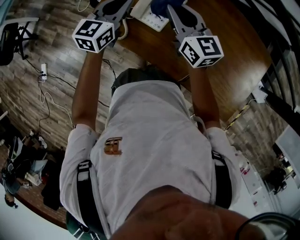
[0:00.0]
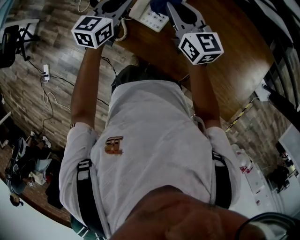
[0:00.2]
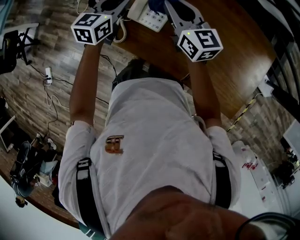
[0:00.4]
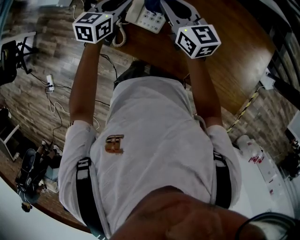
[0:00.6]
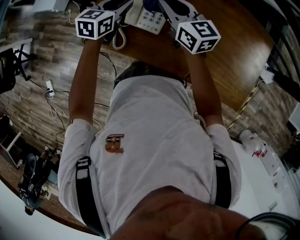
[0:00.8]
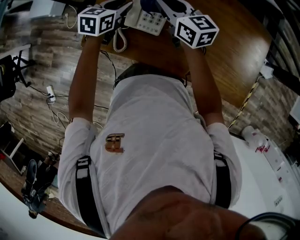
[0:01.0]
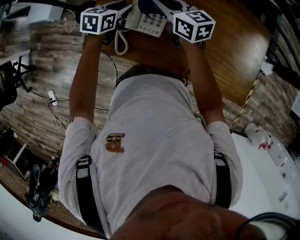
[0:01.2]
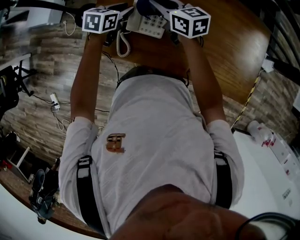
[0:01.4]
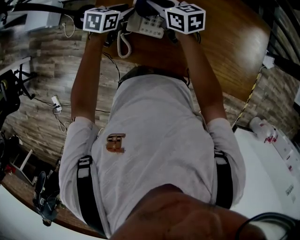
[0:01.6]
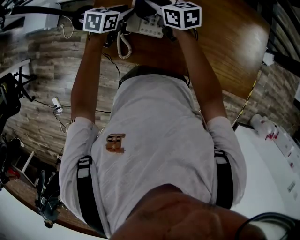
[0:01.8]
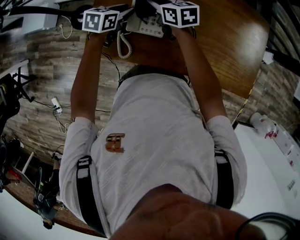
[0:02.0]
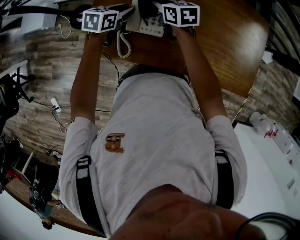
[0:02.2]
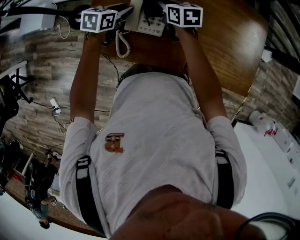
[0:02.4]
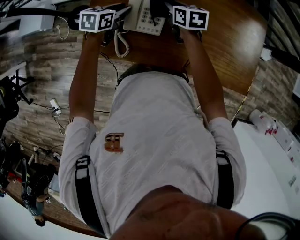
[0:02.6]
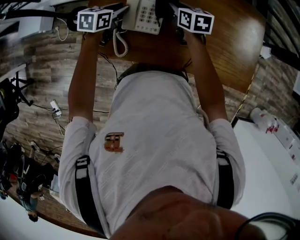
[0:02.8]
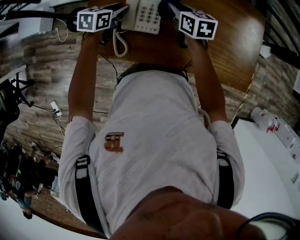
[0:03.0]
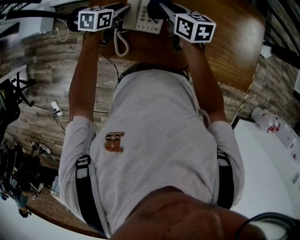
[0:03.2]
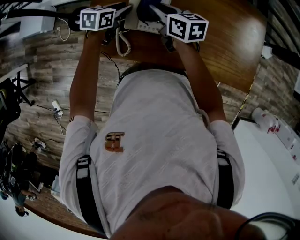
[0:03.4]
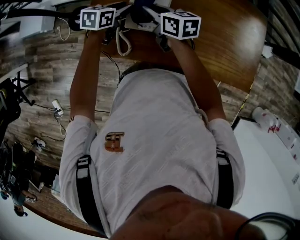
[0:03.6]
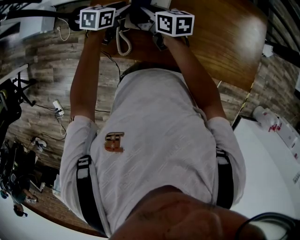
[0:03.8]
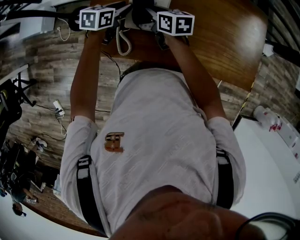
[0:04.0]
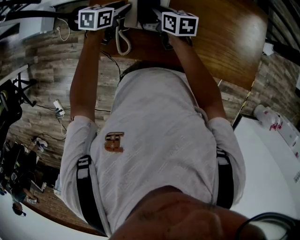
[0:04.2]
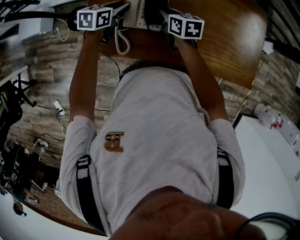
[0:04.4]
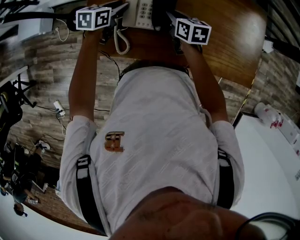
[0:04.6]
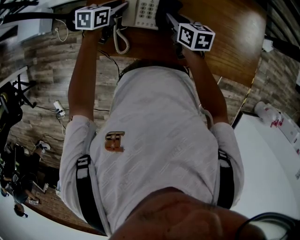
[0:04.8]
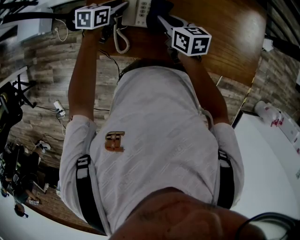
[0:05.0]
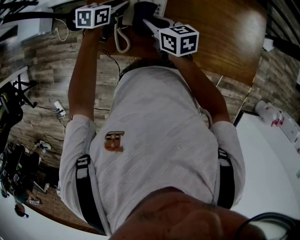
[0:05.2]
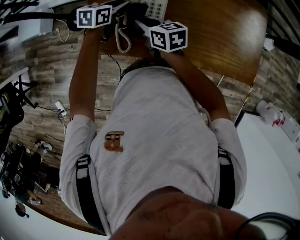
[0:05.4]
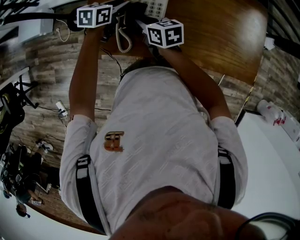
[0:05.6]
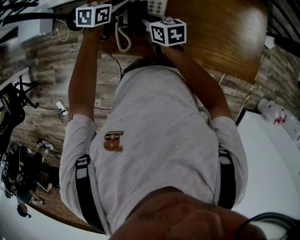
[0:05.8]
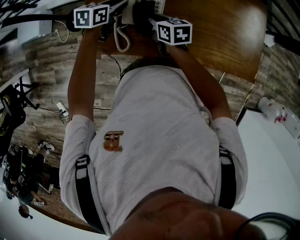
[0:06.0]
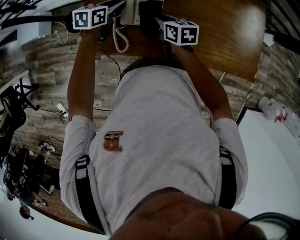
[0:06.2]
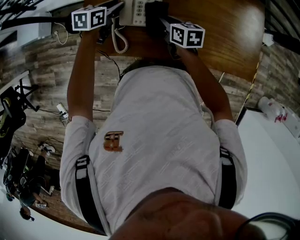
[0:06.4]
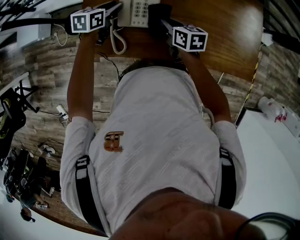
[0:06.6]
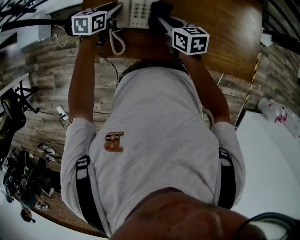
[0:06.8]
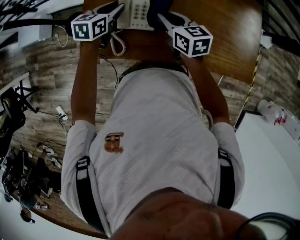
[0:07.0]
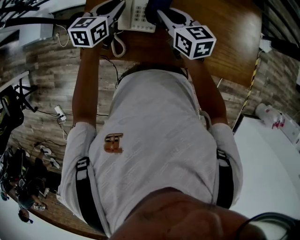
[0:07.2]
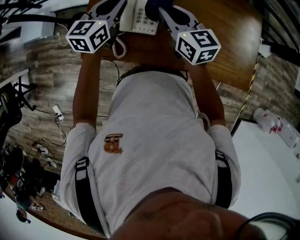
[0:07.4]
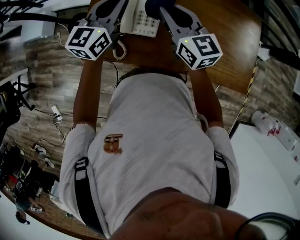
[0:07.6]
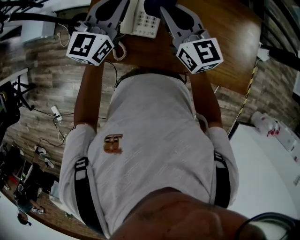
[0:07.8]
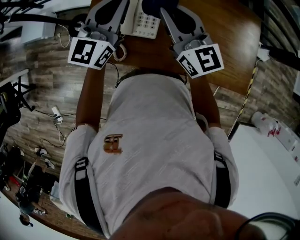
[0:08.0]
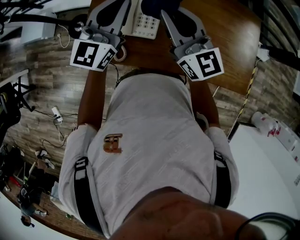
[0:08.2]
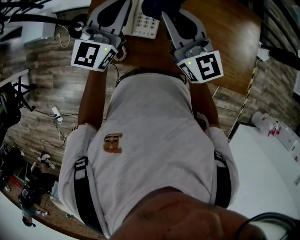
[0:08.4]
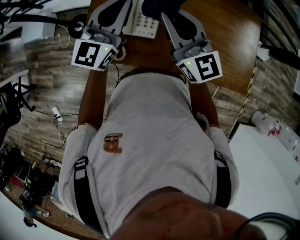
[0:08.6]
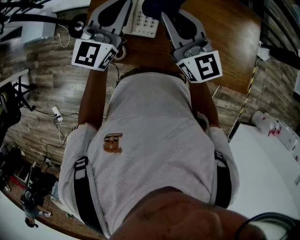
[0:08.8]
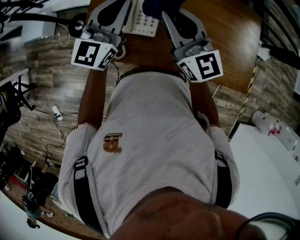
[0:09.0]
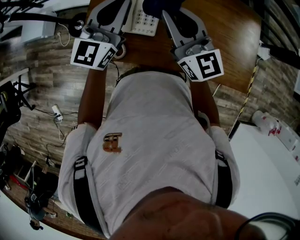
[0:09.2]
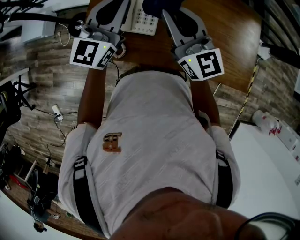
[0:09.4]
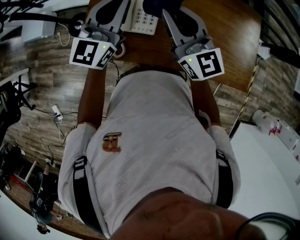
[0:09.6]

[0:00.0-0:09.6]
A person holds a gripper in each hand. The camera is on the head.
0:00.0 to 0:01.6: The left gripper shifts roughly 15 cm downward and forward, turns by approximately 40 degrees, and opens its fingers; the right gripper travels forward, downward and to the left by roughly 15 cm, and swivels about 20 degrees.
0:01.6 to 0:03.2: The right gripper heads to the right, covering some 5 cm.
0:03.2 to 0:04.8: The right gripper is displaced downward by approximately 5 cm.
0:04.8 to 0:06.4: The right gripper moves about 15 cm to the left and comes back.
0:06.4 to 0:08.0: Both grippers move upward, some 25 cm. The right gripper tips its fingers upward by about 40 degrees. The left gripper tilts its fingers about 40 degrees upward, and closes.
0:08.0 to 0:09.6: There are only small adjustments of the grippers.

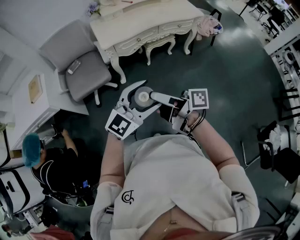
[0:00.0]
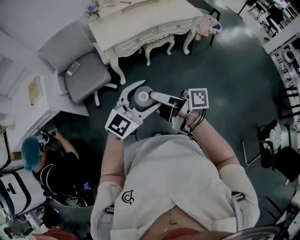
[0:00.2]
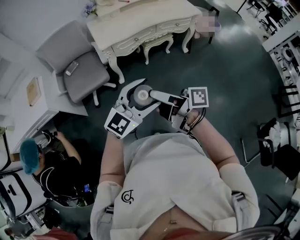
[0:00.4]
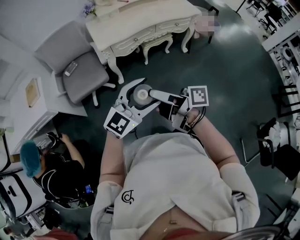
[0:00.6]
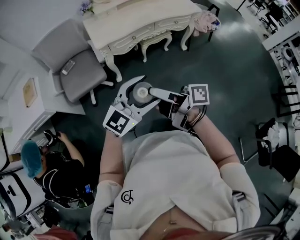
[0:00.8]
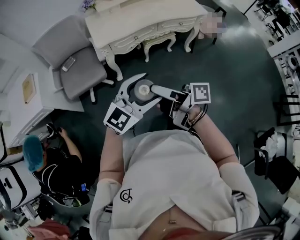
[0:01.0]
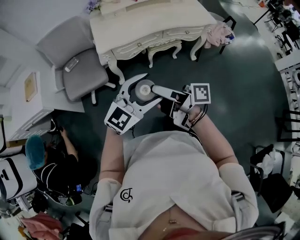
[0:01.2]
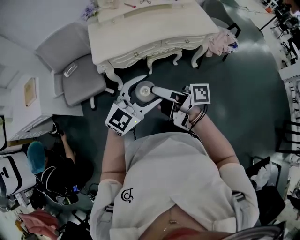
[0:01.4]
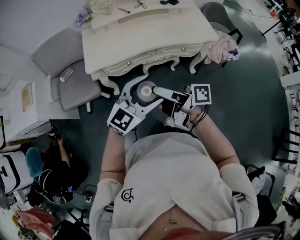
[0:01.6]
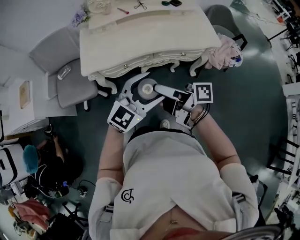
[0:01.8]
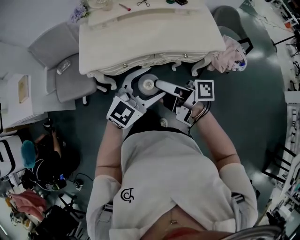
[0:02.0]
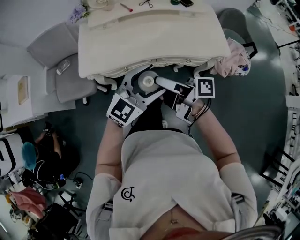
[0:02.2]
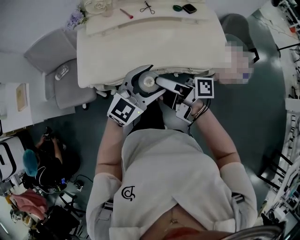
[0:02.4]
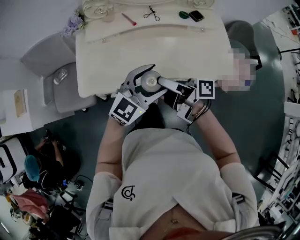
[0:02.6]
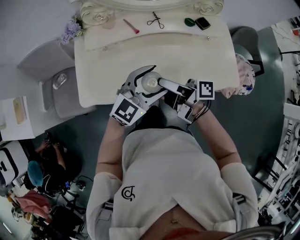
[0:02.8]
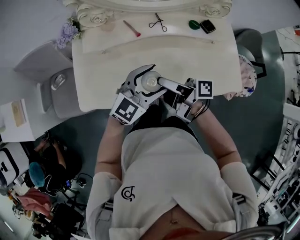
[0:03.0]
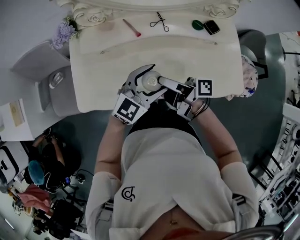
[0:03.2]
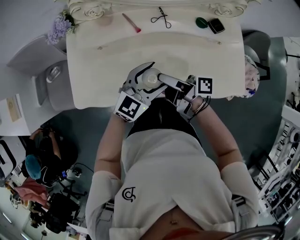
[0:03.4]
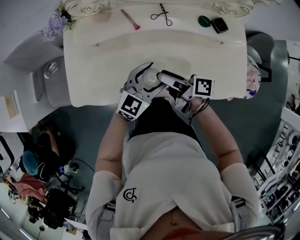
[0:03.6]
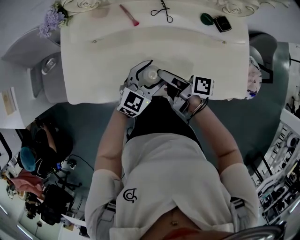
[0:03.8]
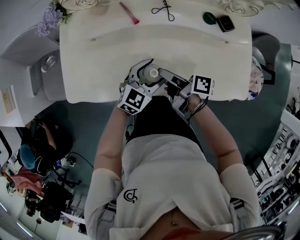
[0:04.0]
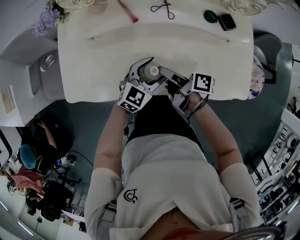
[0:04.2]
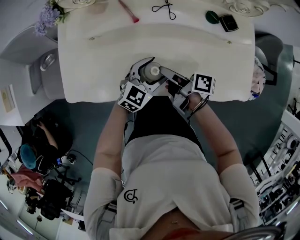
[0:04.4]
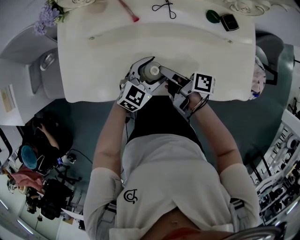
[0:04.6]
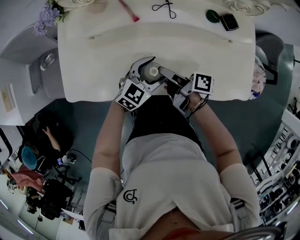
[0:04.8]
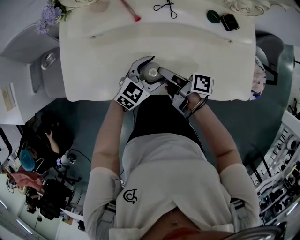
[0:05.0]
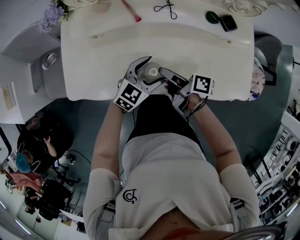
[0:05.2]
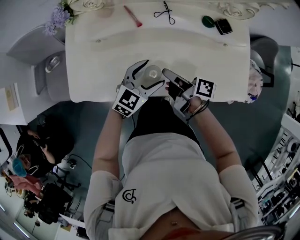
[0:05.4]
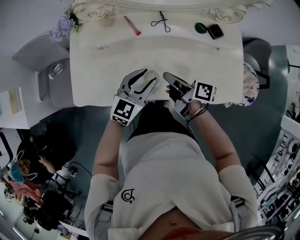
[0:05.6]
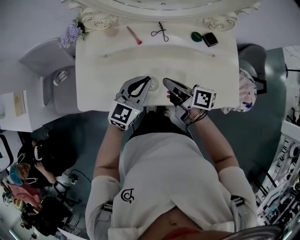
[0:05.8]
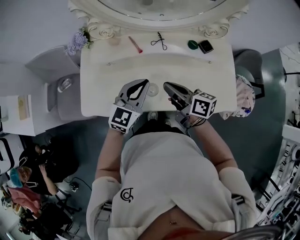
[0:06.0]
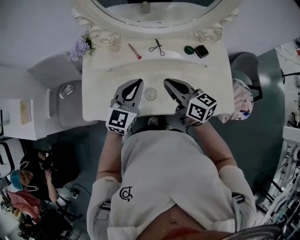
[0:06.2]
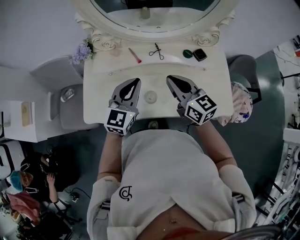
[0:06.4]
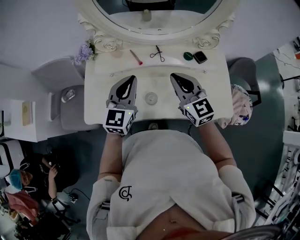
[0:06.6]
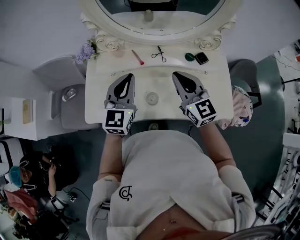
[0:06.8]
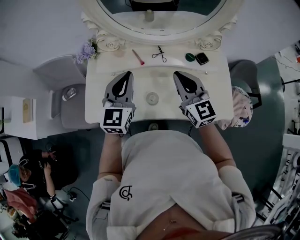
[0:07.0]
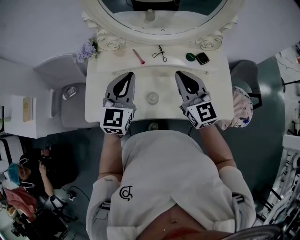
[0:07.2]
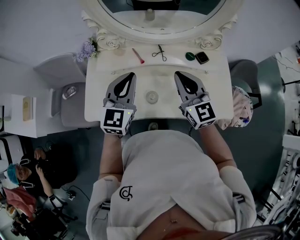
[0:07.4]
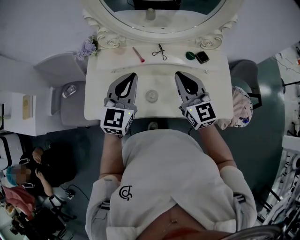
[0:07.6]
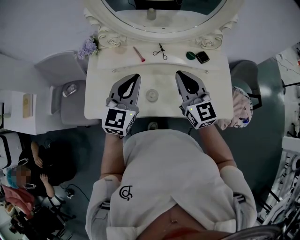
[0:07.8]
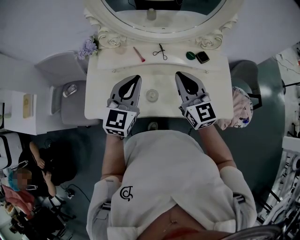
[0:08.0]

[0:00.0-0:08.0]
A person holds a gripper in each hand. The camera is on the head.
0:00.0 to 0:01.6: Both grippers move forward and to the right, some 35 cm.
0:01.6 to 0:03.2: Both grippers are carried forward, about 40 cm.
0:03.2 to 0:04.8: Both grippers travel together downward, approximately 15 cm. The right gripper rotates about 20 degrees.
0:04.8 to 0:06.4: Both grippers travel together upward, approximately 25 cm. The right gripper rolls counterclockwise, seen from behind, by roughly 70 degrees, and closes up. Meanwhile the left gripper changes its angle by some 30 degrees, and closes its fingers.
0:06.4 to 0:08.0: The right gripper turns by approximately 20 degrees.

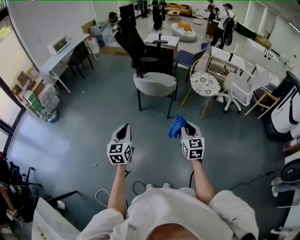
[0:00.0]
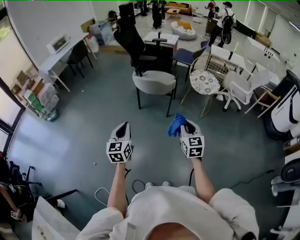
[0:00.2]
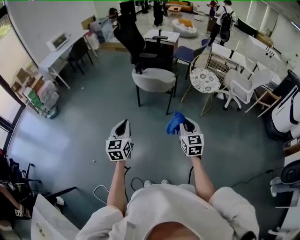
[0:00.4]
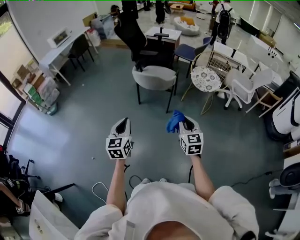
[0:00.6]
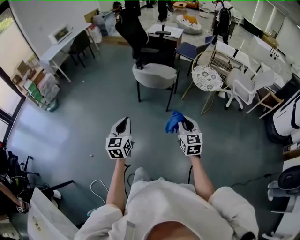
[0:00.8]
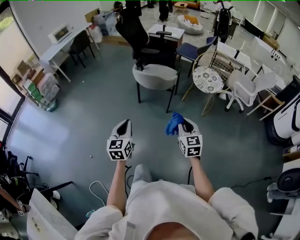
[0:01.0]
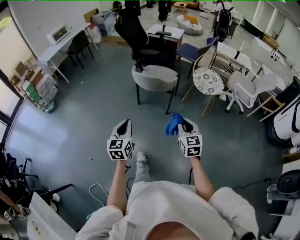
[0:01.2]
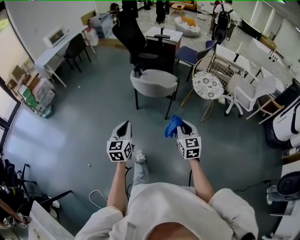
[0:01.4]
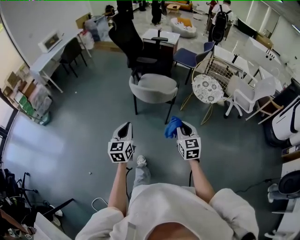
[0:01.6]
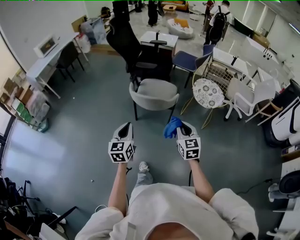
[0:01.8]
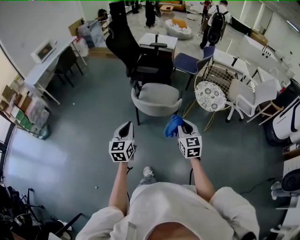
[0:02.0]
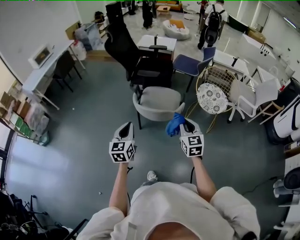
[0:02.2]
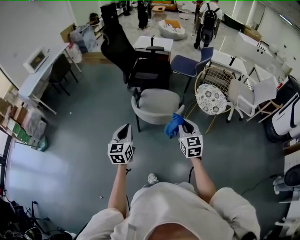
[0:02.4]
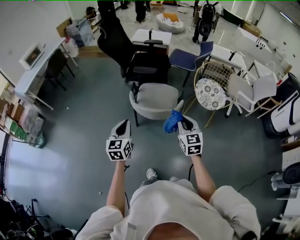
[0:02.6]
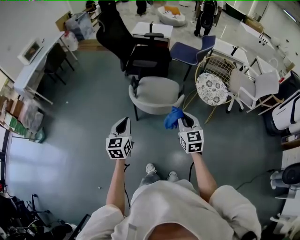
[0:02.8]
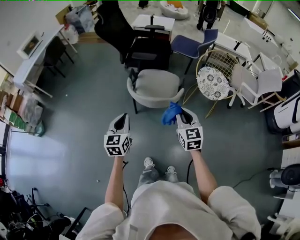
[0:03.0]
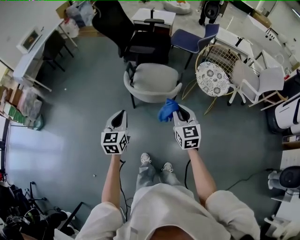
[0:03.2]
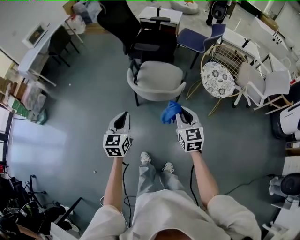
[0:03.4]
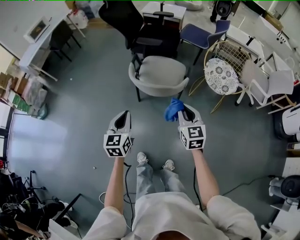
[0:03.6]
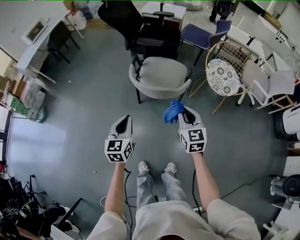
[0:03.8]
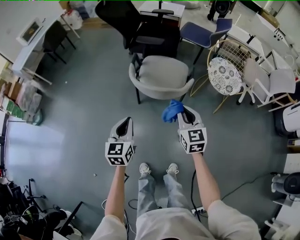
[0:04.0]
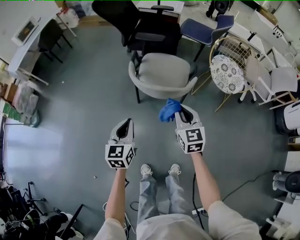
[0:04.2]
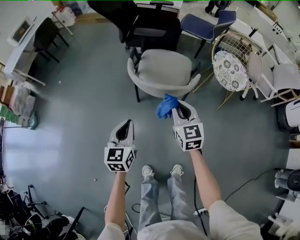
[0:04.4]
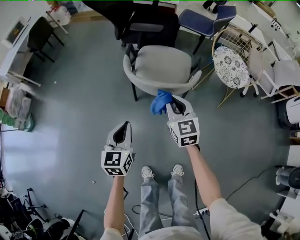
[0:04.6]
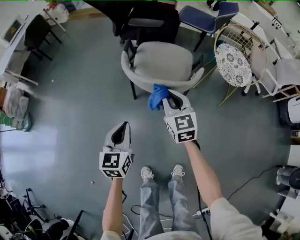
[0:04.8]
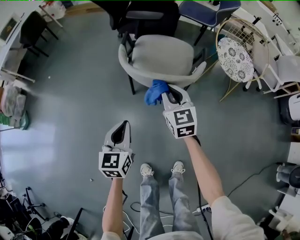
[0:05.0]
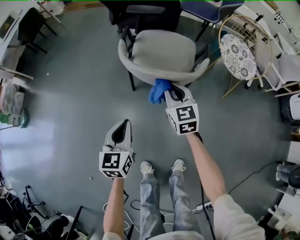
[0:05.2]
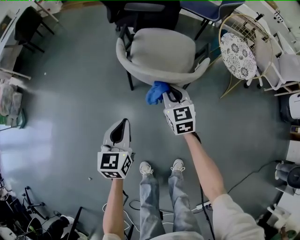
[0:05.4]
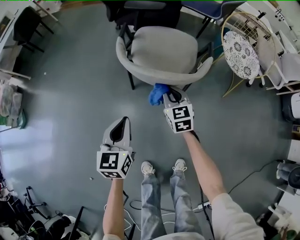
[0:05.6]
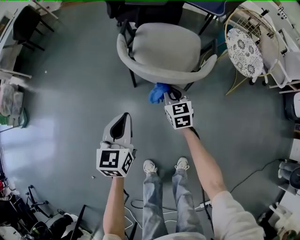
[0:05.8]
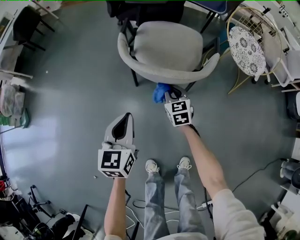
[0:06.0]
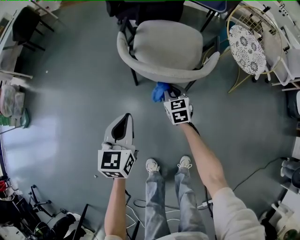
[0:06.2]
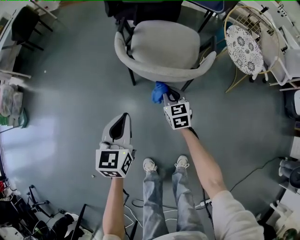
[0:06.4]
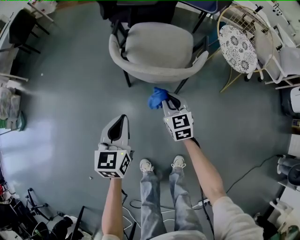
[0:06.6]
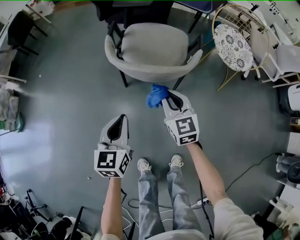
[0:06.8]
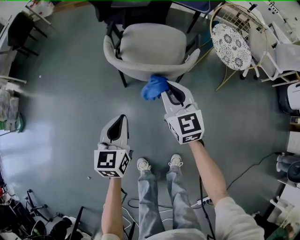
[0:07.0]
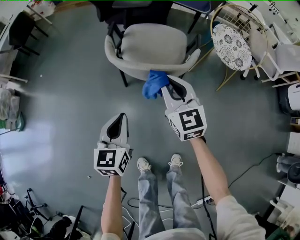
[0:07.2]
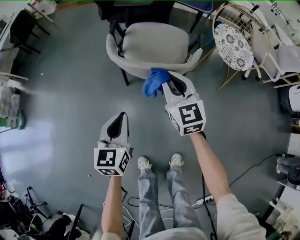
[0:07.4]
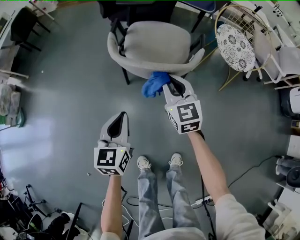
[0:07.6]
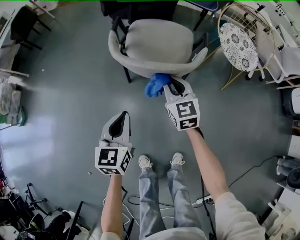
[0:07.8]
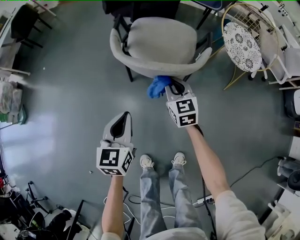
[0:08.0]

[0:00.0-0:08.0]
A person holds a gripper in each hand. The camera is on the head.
0:00.0 to 0:01.6: The grippers both shift forward by some 20 cm.
0:01.6 to 0:03.2: The two grippers go roughly 20 cm forward.
0:03.2 to 0:04.8: The right gripper goes approximately 25 cm downward, forward and to the left, while the left gripper travels downward by roughly 20 cm.
0:04.8 to 0:06.4: The right gripper travels downward by approximately 20 cm, while the left gripper is displaced downward by roughly 5 cm.
0:06.4 to 0:08.0: The right gripper is displaced upward by roughly 10 cm.
